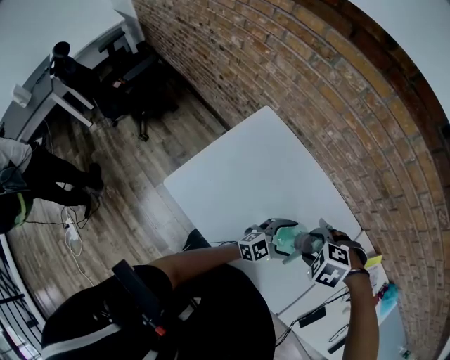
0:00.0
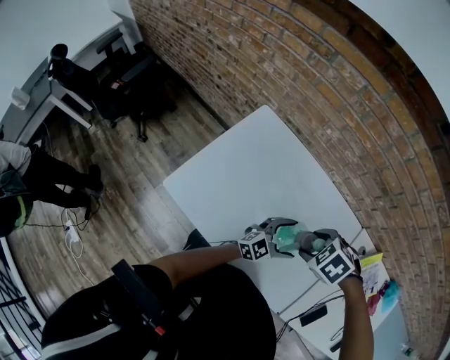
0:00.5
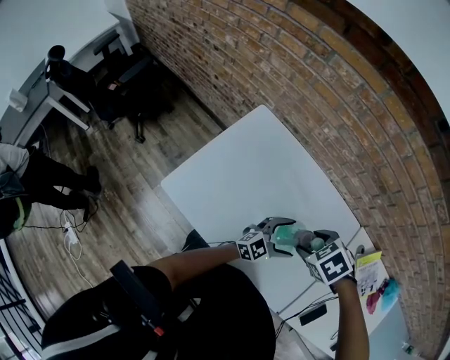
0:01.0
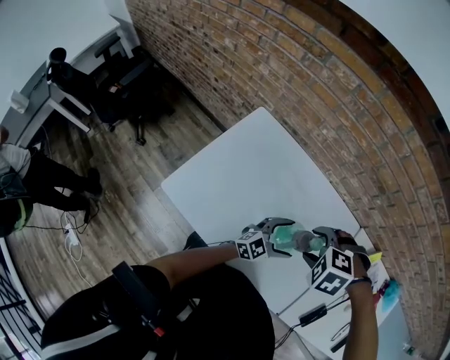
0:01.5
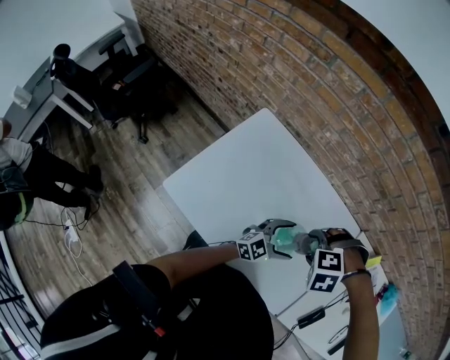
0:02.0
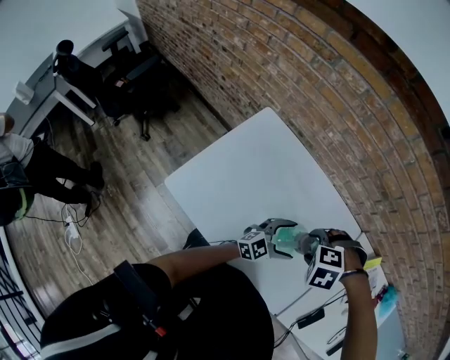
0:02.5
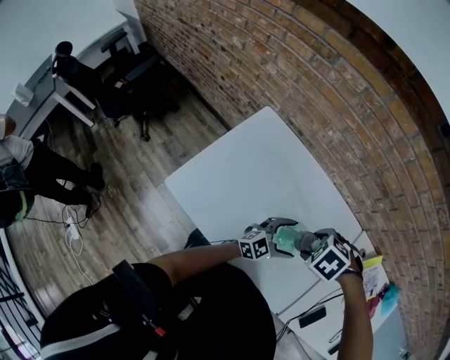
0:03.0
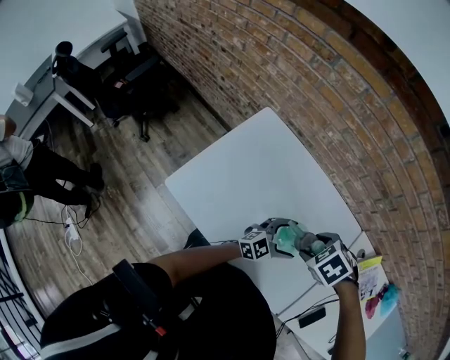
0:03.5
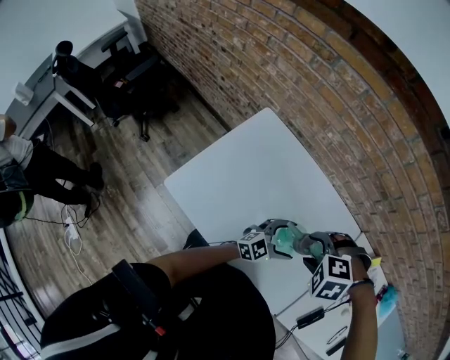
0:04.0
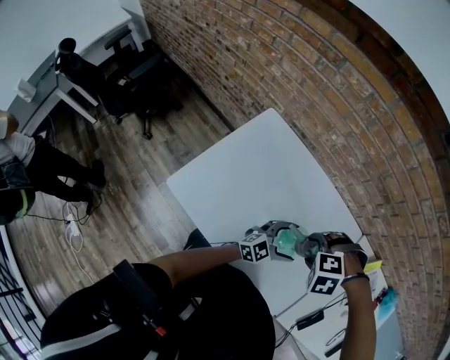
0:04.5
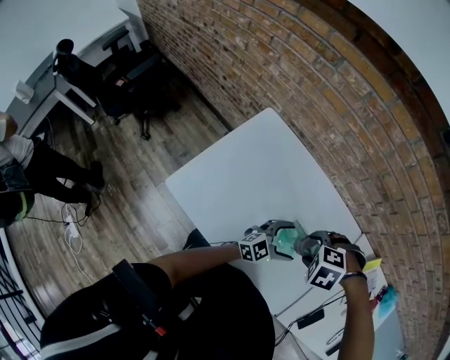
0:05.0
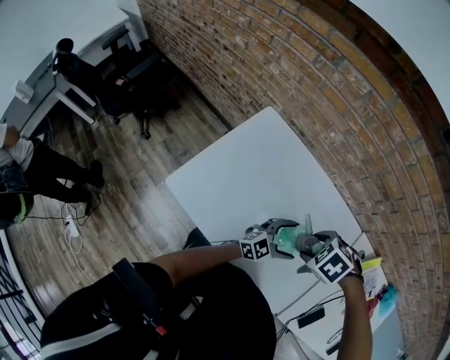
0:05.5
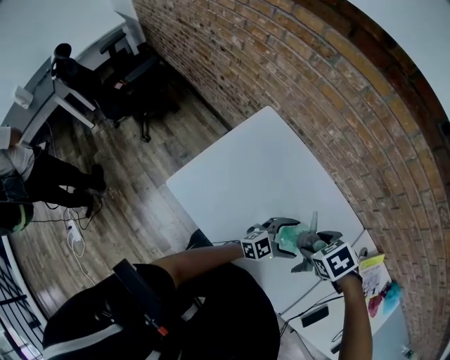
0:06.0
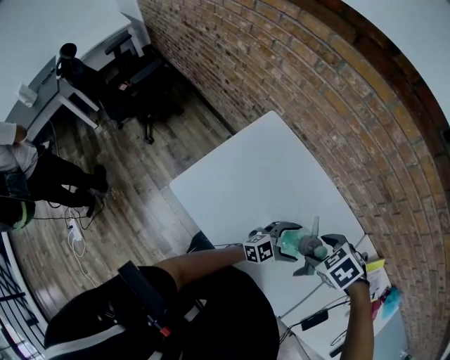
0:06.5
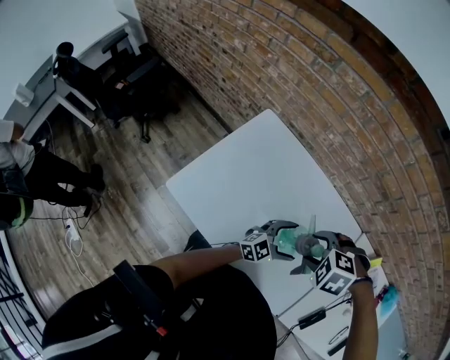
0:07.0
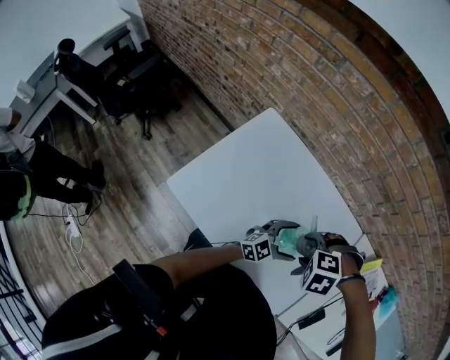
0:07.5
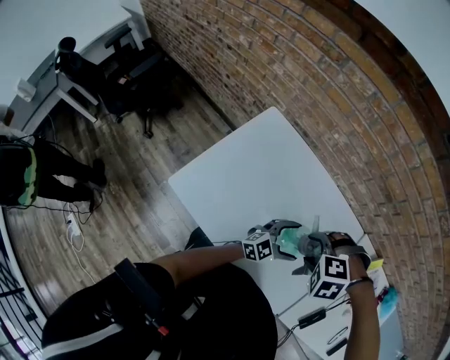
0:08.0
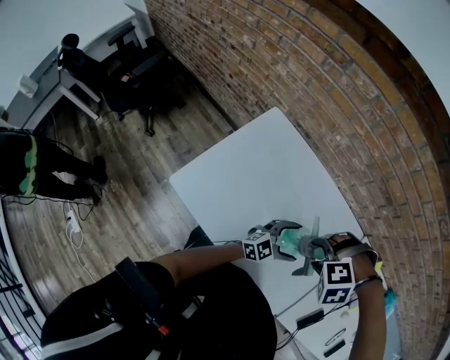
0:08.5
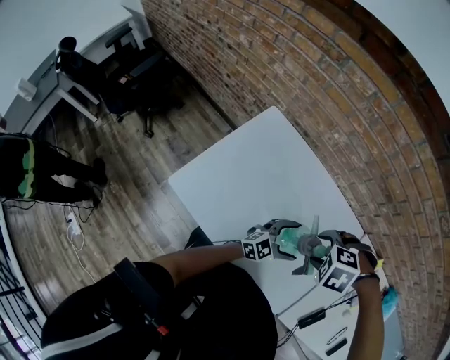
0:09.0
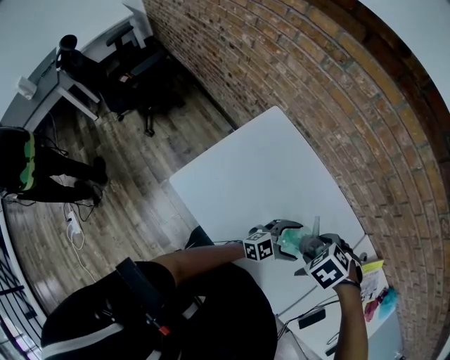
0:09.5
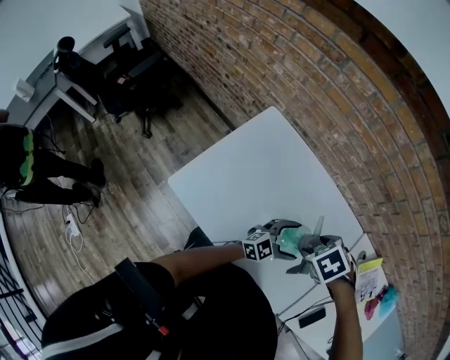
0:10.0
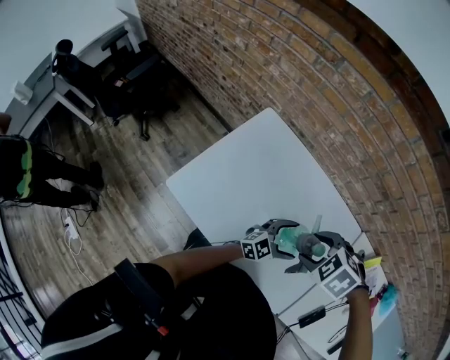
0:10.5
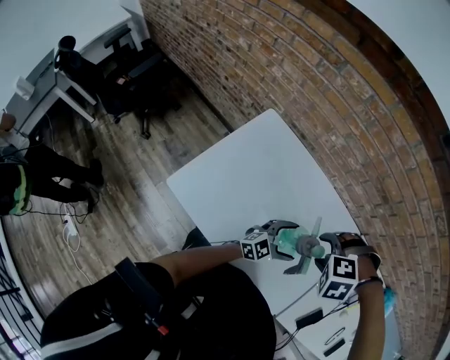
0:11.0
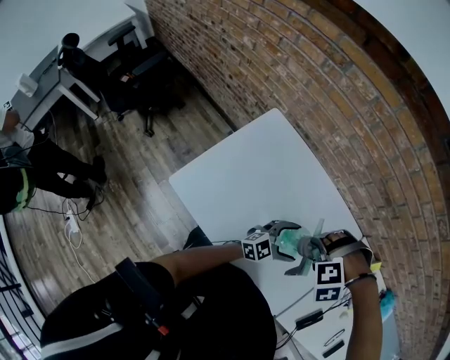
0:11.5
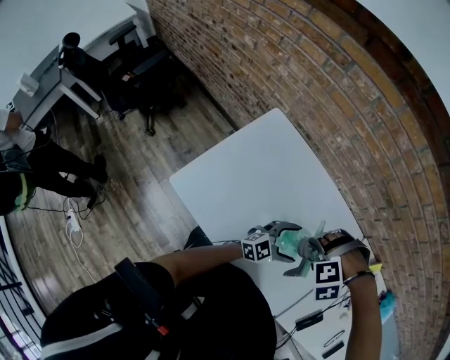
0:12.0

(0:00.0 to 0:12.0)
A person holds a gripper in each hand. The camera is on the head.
0:04.0 - 0:06.0: The right gripper rotates around the line of its fingers by approximately 50 degrees, clockwise from behind.
0:06.0 - 0:08.0: The right gripper rolls counterclockwise, seen from behind, by approximately 50 degrees.
0:08.0 - 0:10.0: The right gripper twists about 50 degrees clockwise, seen from behind.
0:10.0 - 0:12.0: The right gripper rolls counterclockwise, seen from behind, by roughly 80 degrees.

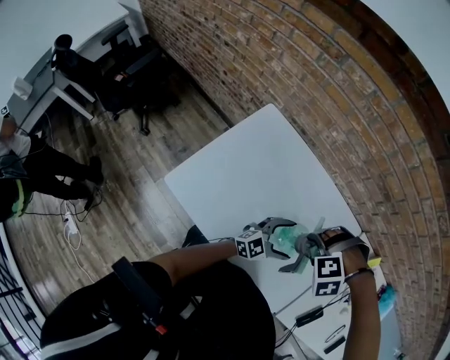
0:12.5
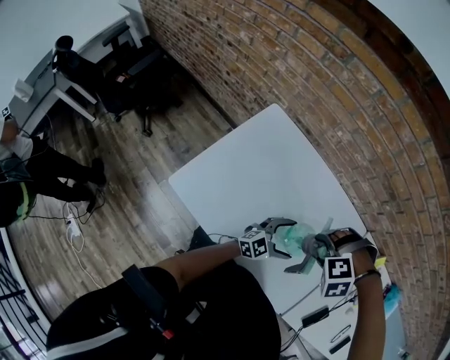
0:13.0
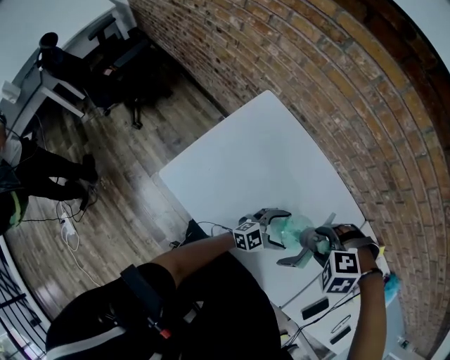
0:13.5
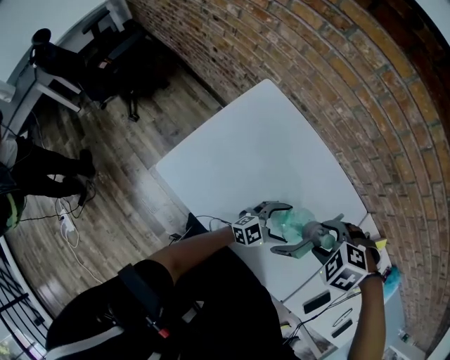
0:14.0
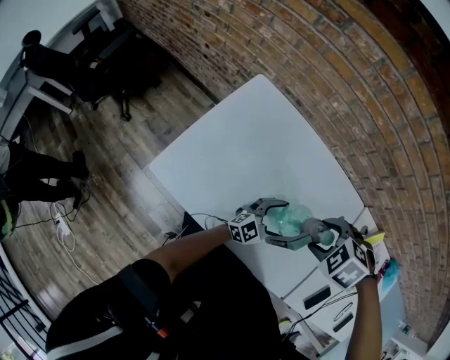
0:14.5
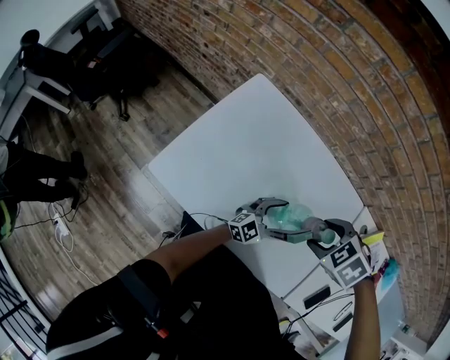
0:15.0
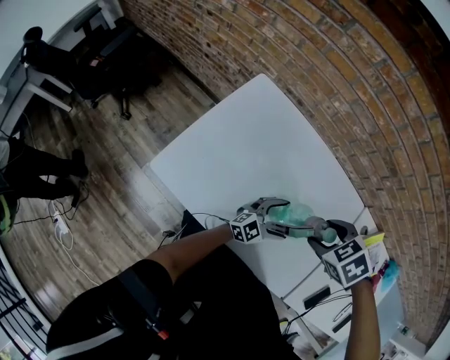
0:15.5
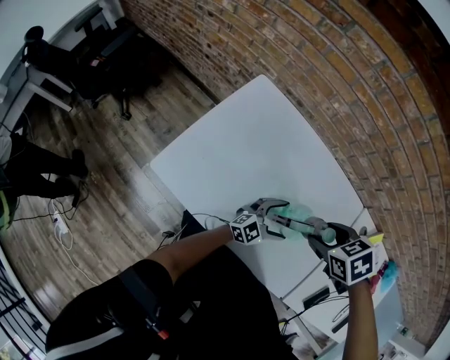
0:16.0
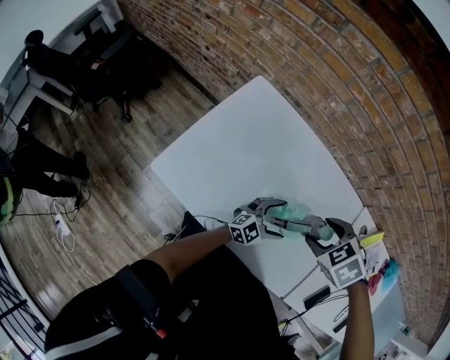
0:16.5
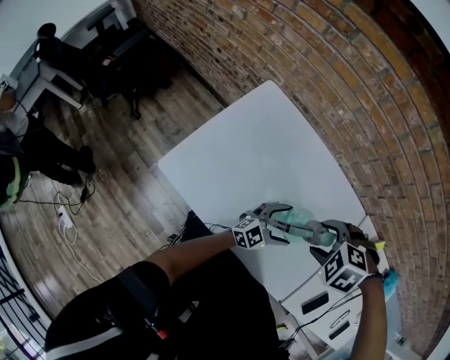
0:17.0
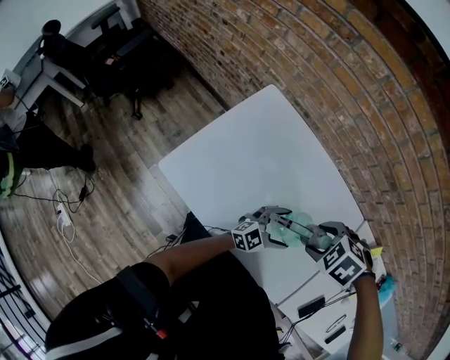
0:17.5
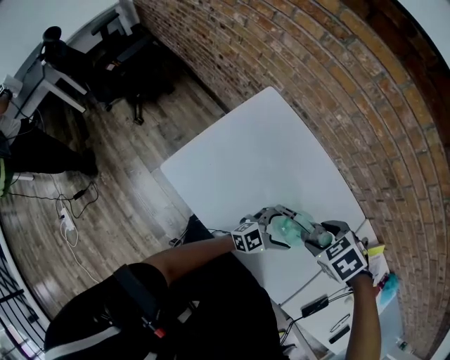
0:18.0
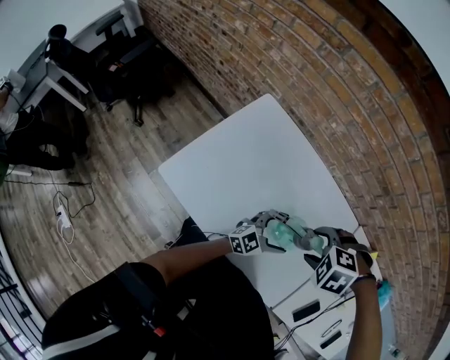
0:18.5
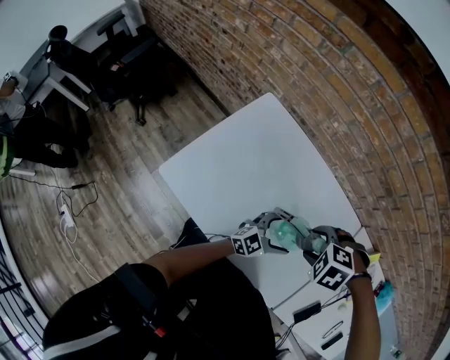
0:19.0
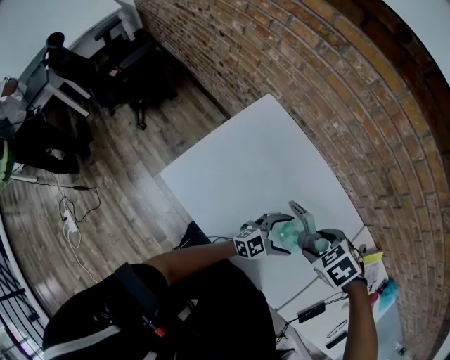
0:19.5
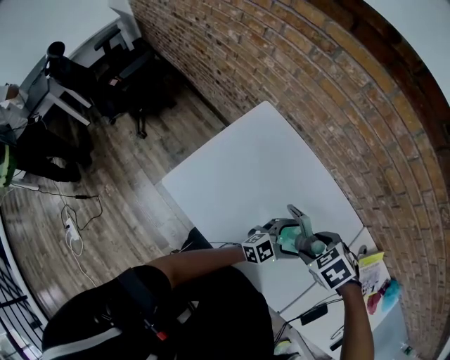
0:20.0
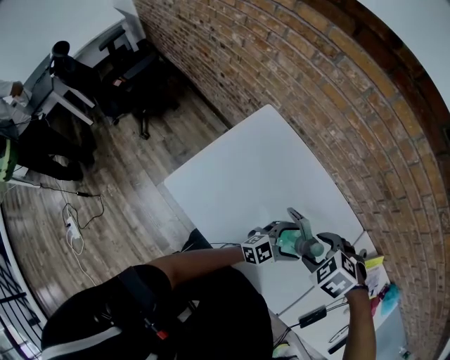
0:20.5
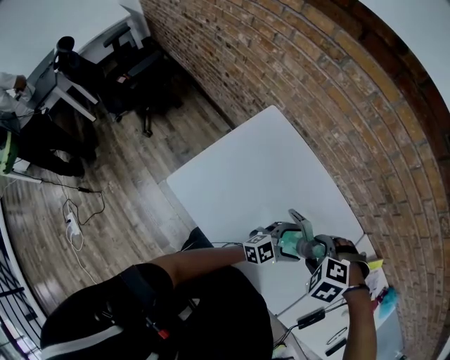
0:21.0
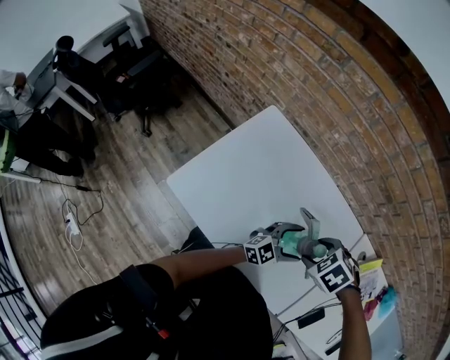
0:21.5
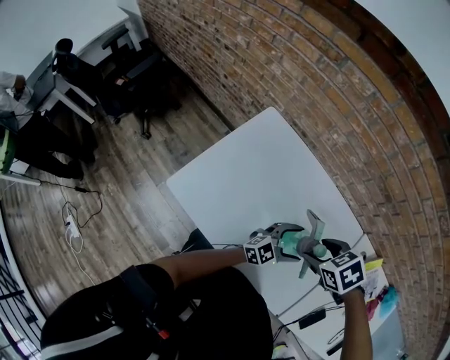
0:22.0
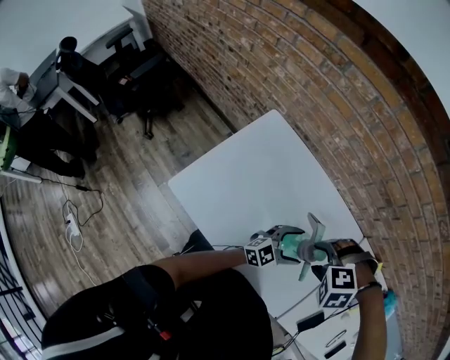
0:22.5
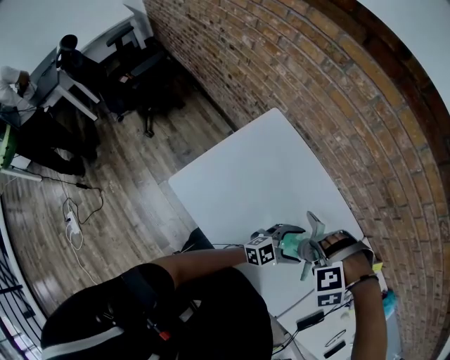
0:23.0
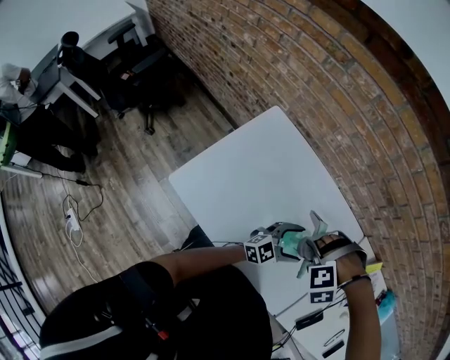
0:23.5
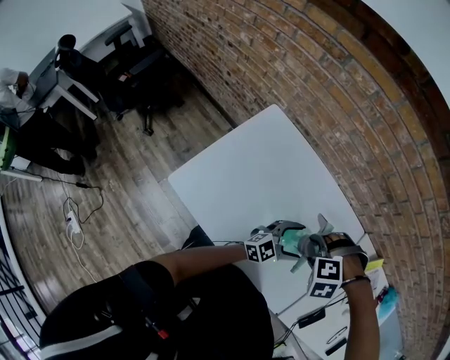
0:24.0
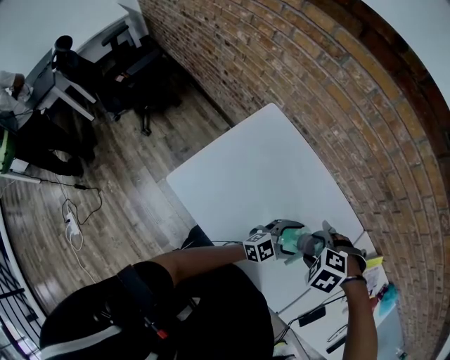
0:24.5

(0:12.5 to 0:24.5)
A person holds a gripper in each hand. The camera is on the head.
0:12.5 - 0:14.5: The right gripper rotates around the line of its fingers by roughly 50 degrees, clockwise from behind, while the left gripper is displaced downward by roughly 5 cm.
0:14.5 - 0:16.5: The right gripper turns by roughly 20 degrees.
0:16.5 - 0:18.5: The right gripper swivels some 40 degrees. Meanwhile the left gripper goes some 5 cm upward.
0:20.5 - 0:22.5: The right gripper turns by roughly 30 degrees.

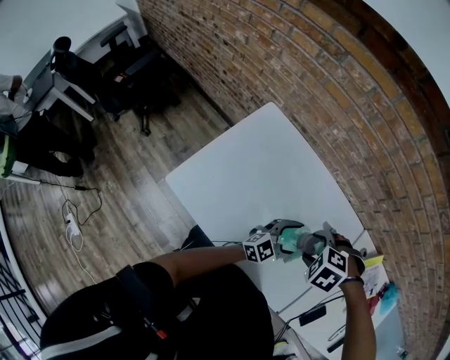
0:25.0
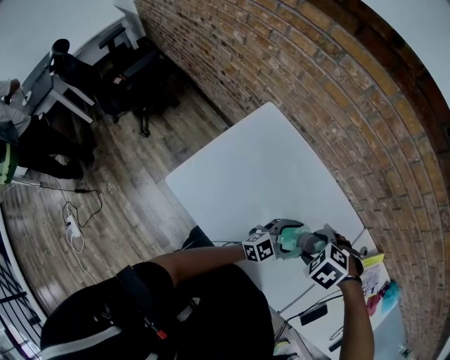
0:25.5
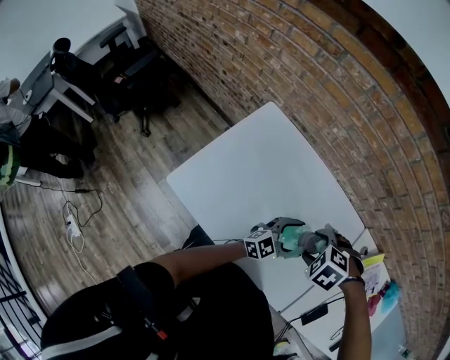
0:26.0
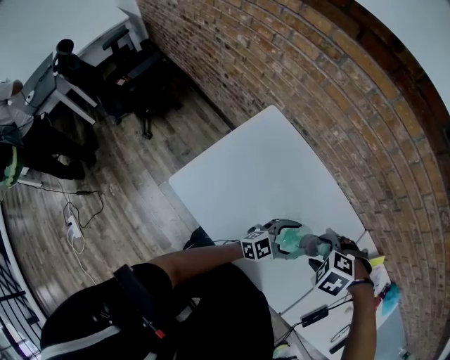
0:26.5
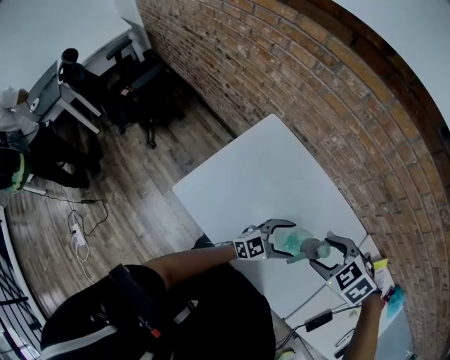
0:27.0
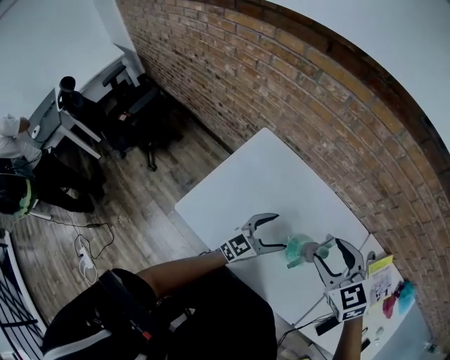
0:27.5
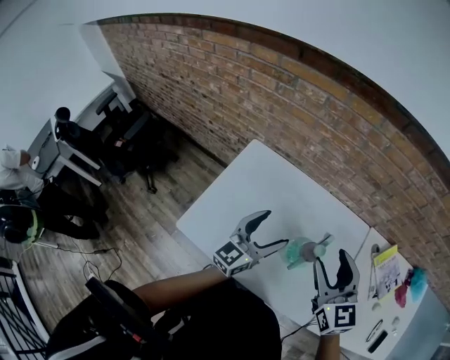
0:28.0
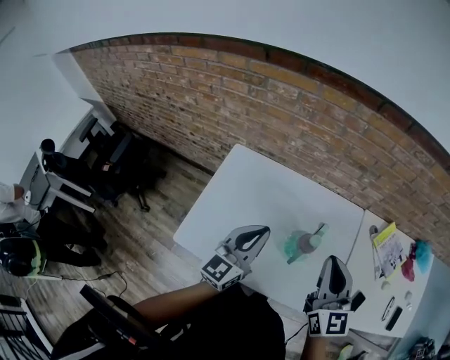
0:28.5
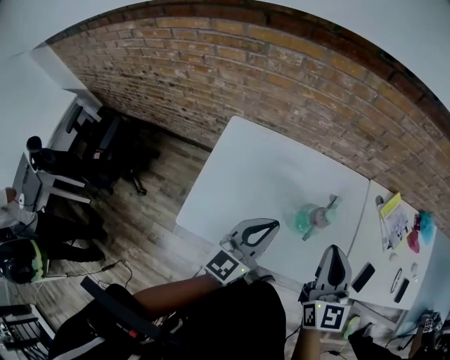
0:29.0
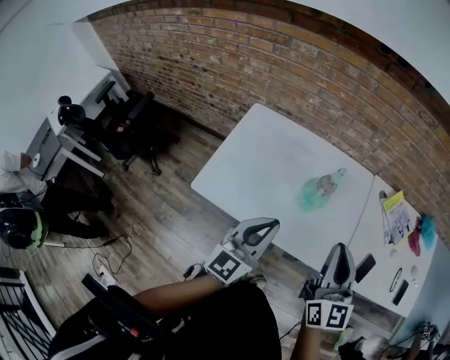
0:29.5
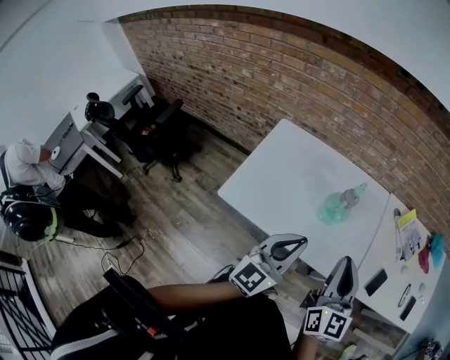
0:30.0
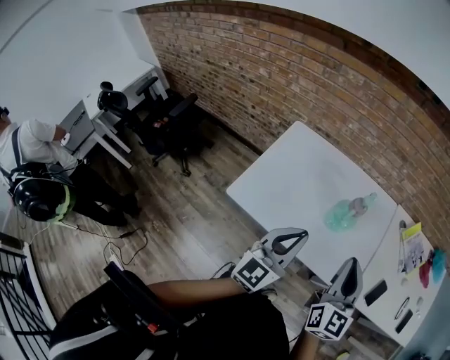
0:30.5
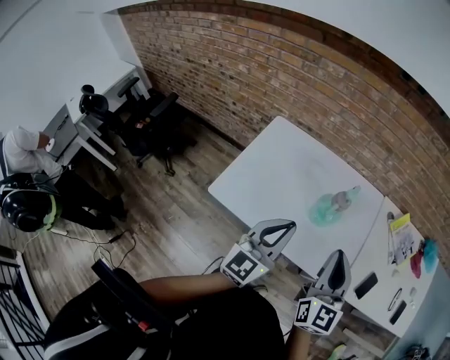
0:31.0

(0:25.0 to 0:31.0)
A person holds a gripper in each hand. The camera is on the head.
0:25.0 - 0:27.0: The left gripper shifts by roughly 5 cm. Meanwhile the right gripper heads upward, covering approximately 5 cm, and changes its angle by roughly 20 degrees.
0:27.0 - 0:29.0: The right gripper travels upward by approximately 10 cm, points its fingers some 60 degrees further upward, and closes its fingers. The left gripper heads upward, covering roughly 20 cm, turns by about 20 degrees, and closes its fingers.
0:29.0 - 0:31.0: The grippers both shift backward by some 15 cm.
